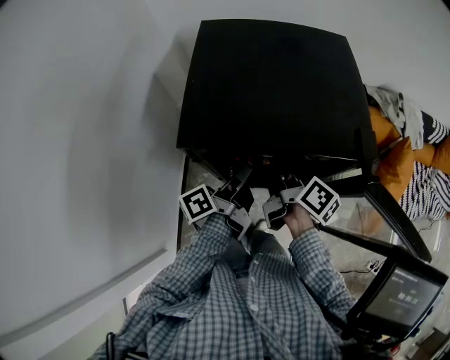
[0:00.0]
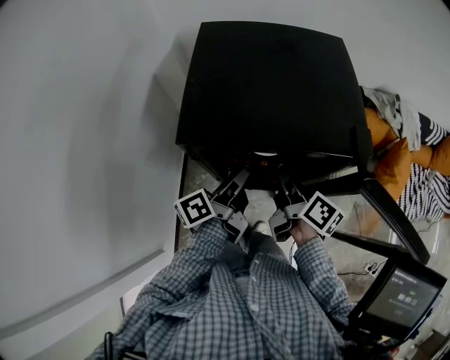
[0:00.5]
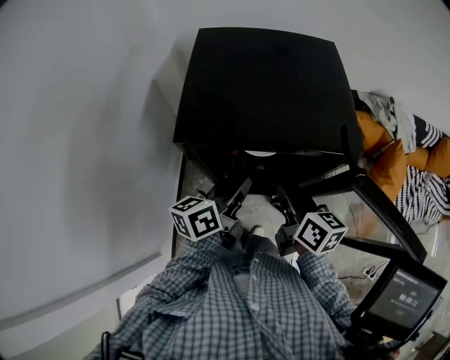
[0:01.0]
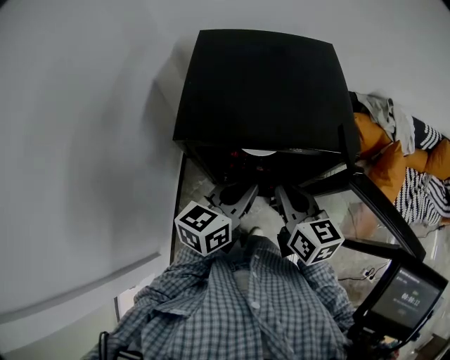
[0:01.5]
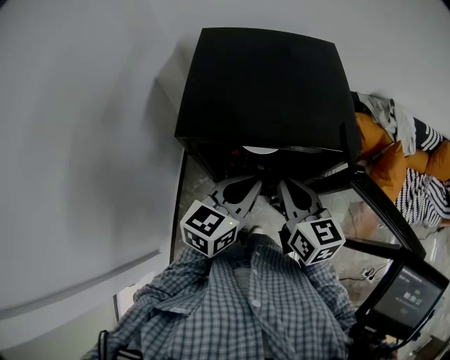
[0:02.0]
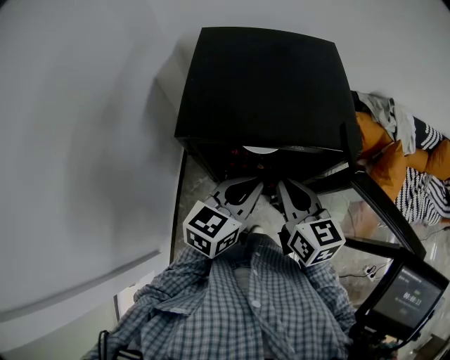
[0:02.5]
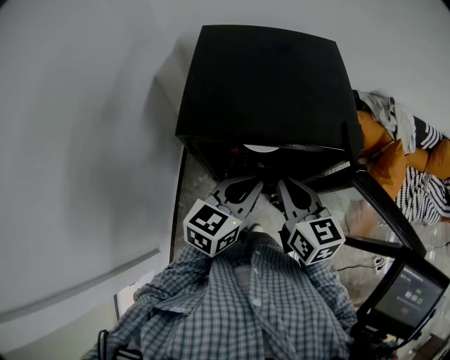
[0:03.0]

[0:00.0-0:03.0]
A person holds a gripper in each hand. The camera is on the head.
0:00.0 to 0:01.5: The right gripper shifts by about 10 cm, and twists roughly 50 degrees counterclockwise, seen from behind.

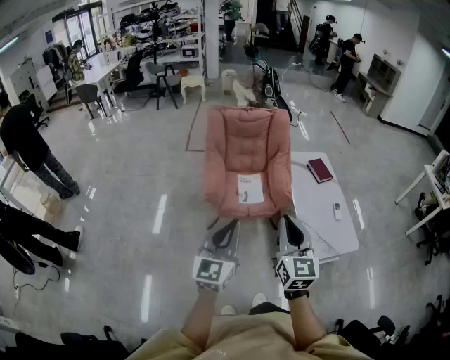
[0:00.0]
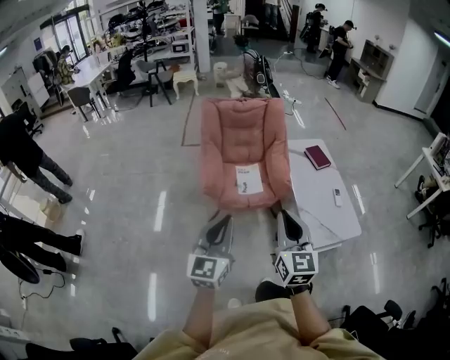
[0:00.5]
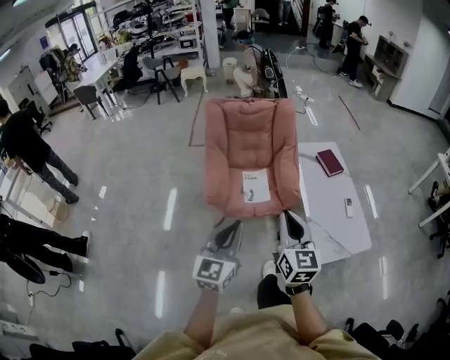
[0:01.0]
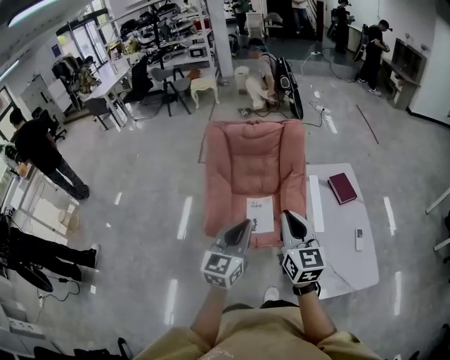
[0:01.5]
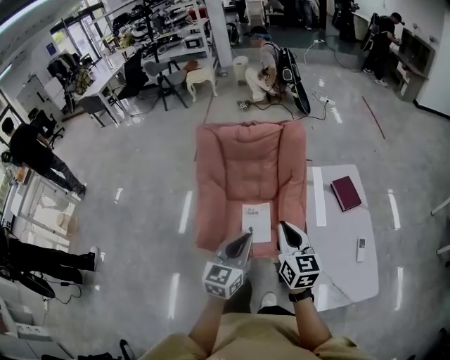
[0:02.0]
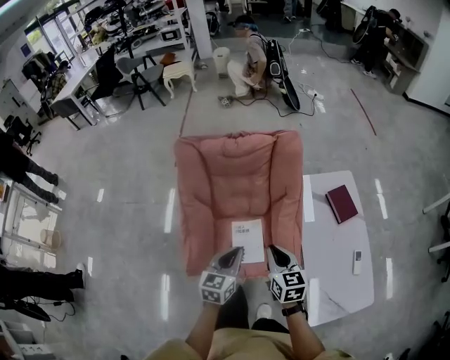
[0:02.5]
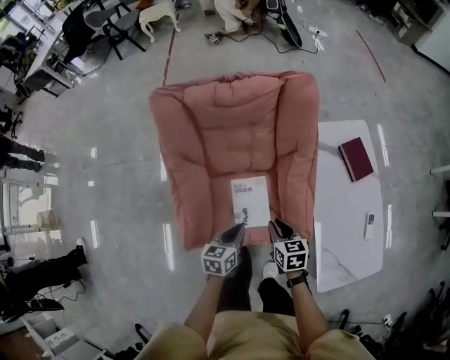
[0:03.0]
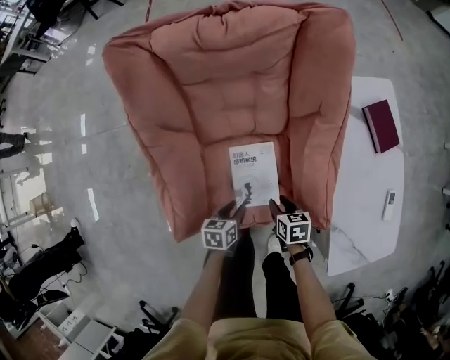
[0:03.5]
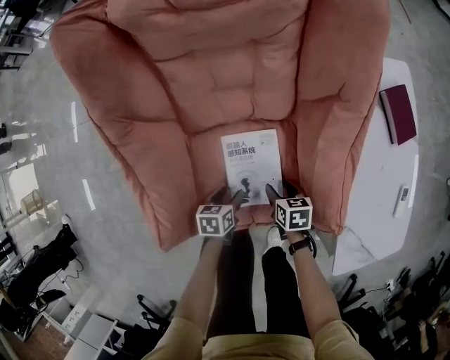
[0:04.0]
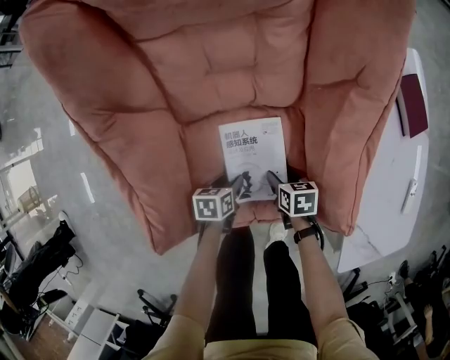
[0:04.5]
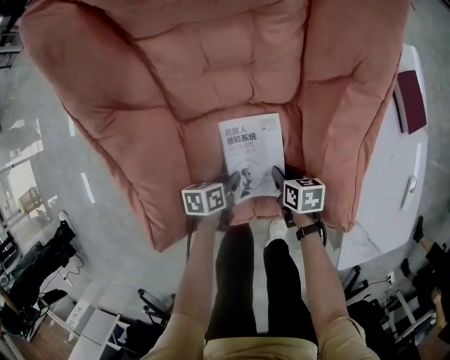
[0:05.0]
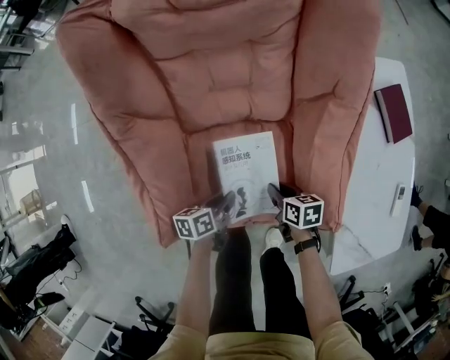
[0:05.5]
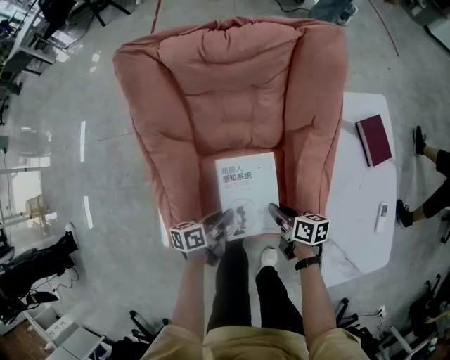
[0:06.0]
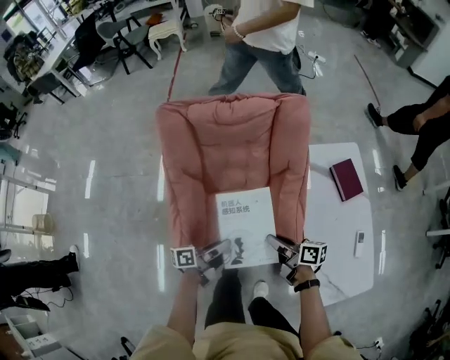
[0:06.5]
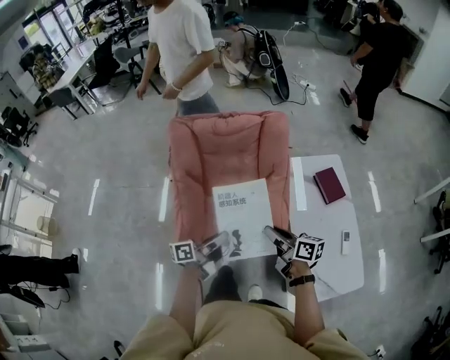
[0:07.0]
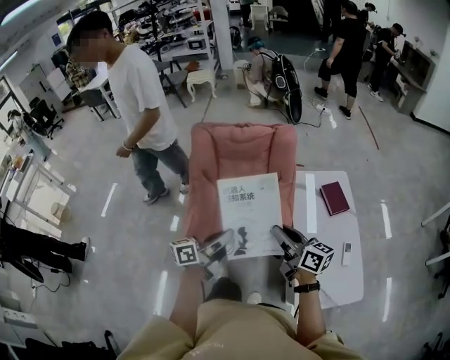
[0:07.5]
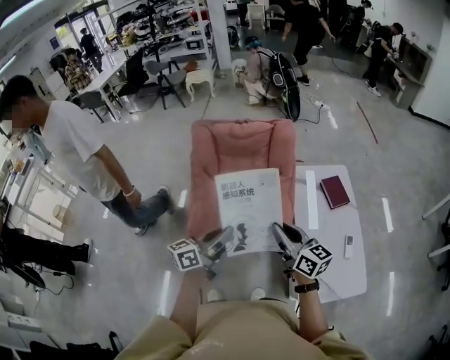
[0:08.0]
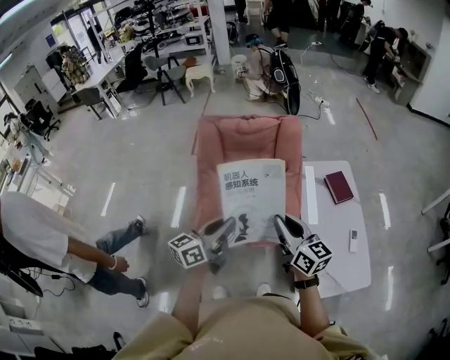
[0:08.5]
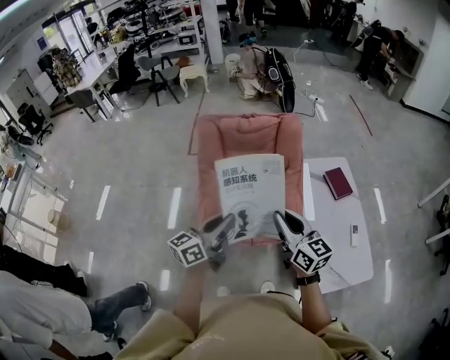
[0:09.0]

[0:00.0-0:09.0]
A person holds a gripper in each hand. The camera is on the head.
0:00.0 to 0:02.0: The pair of grippers is taken forward, about 40 cm. The right gripper rotates about 20 degrees.
0:02.0 to 0:04.5: Both grippers travel together downward, roughly 70 cm. The left gripper angles its fingers downward, by some 40 degrees, and opens up. Meanwhile the right gripper tips its fingers downward by about 50 degrees, and opens.
0:04.5 to 0:07.0: The grippers both shift upward by roughly 60 cm. The right gripper tips its fingers upward by some 50 degrees, and closes its fingers. The left gripper points its fingers approximately 50 degrees further upward, and closes up.
0:07.0 to 0:09.0: Both grippers move backward and upward, some 15 cm. The left gripper rotates roughly 40 degrees. The right gripper swivels about 40 degrees.

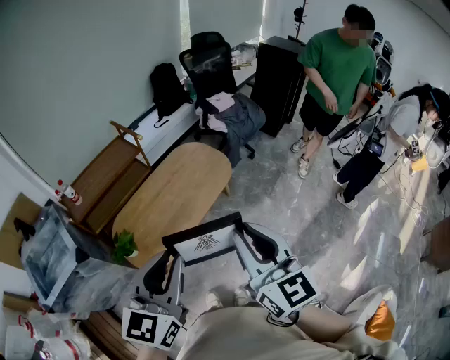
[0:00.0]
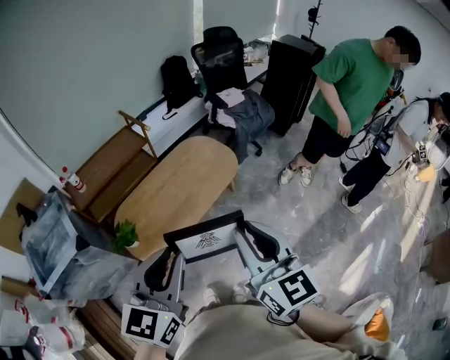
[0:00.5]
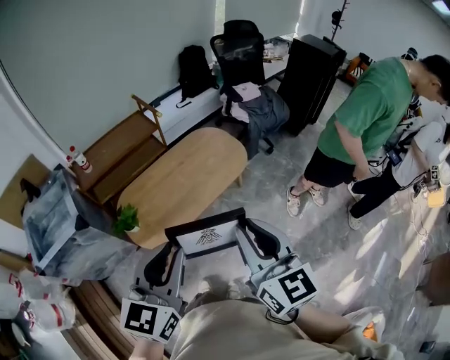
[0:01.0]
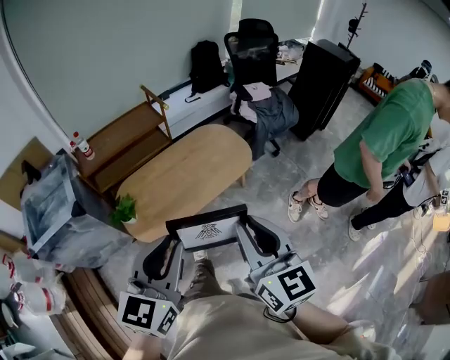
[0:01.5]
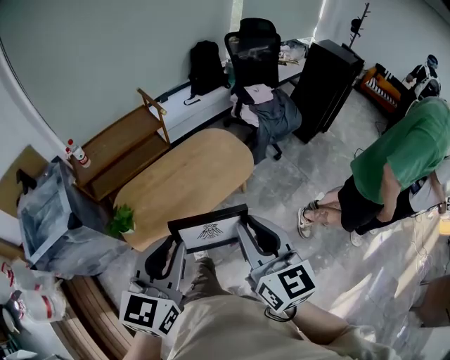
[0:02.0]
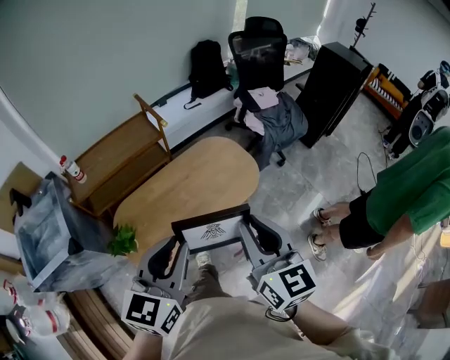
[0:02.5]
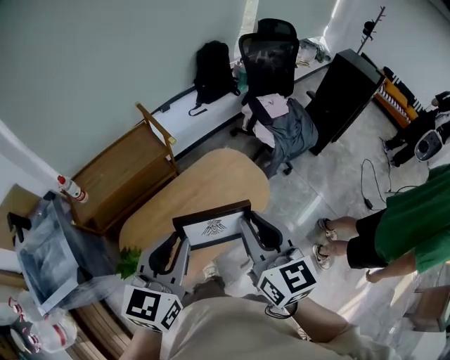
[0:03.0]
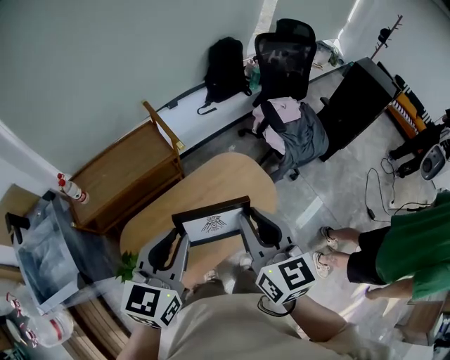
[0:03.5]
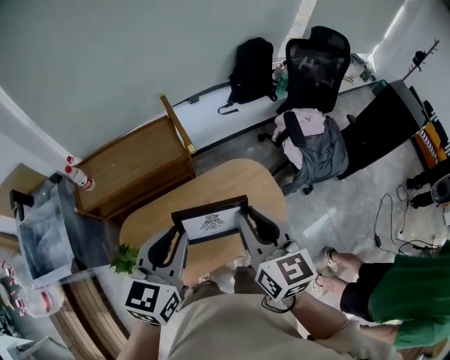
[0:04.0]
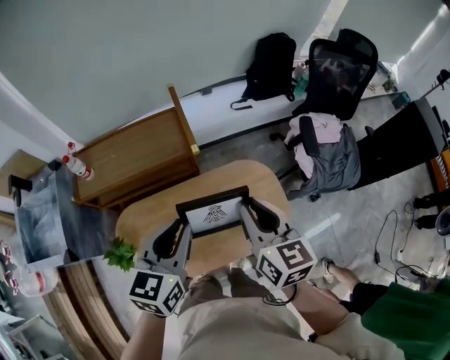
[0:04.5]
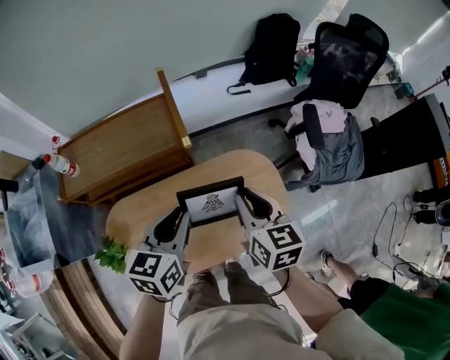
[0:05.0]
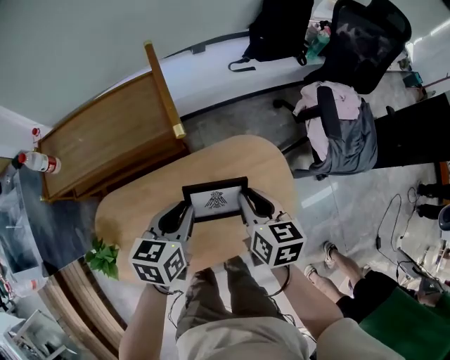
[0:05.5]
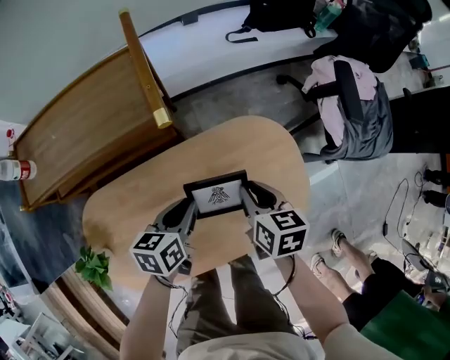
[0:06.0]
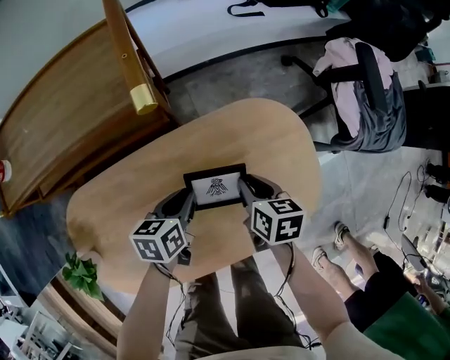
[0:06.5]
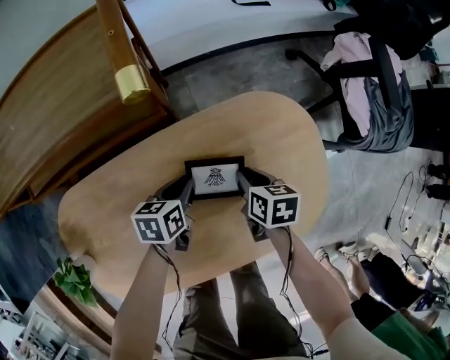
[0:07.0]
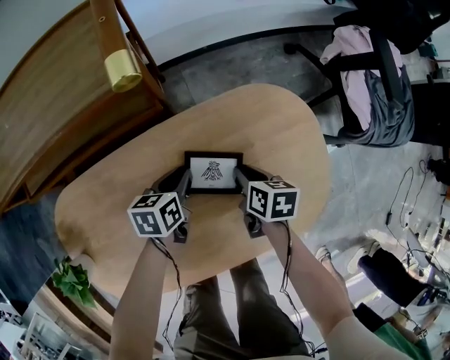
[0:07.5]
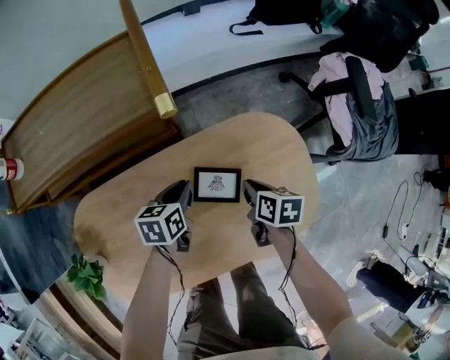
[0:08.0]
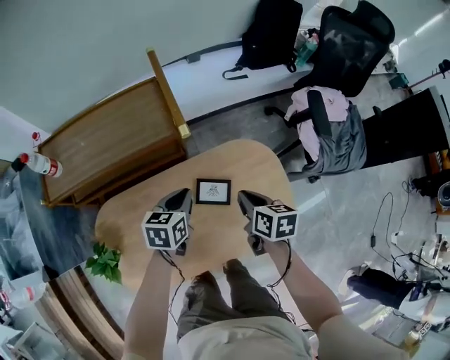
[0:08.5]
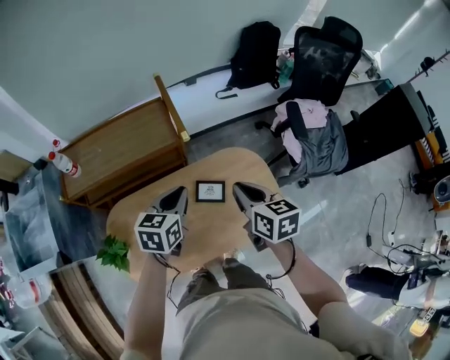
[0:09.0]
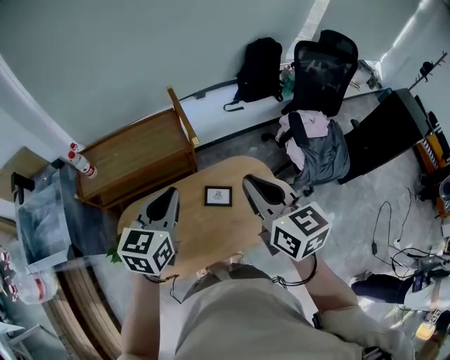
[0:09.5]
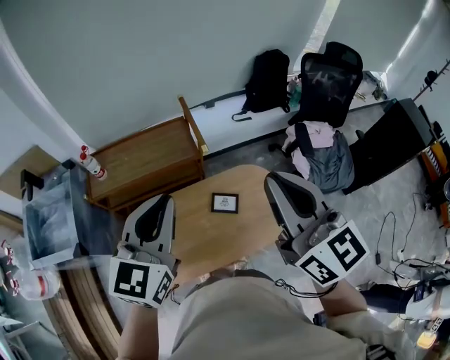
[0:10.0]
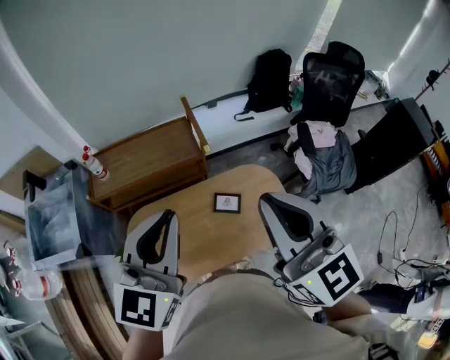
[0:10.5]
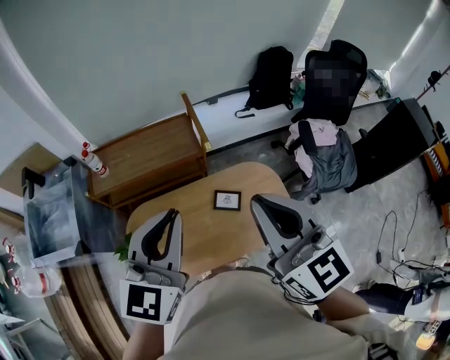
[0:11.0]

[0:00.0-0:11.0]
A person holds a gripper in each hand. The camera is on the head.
0:00.0 to 0:02.0: The two grippers go some 10 cm forward and downward.
0:02.0 to 0:03.5: The two grippers go about 35 cm forward.
0:03.5 to 0:05.5: The grippers both shift downward and forward by roughly 40 cm. The left gripper turns by roughly 30 degrees. Meanwhile the right gripper turns by roughly 30 degrees.
0:05.5 to 0:07.5: Both grippers move downward, approximately 40 cm. The right gripper swivels approximately 30 degrees.
0:07.5 to 0:09.0: Both grippers travel together upward, some 50 cm. The right gripper rotates approximately 30 degrees. Meanwhile the left gripper rotates about 30 degrees.
0:09.0 to 0:11.0: The left gripper travels upward and backward by approximately 30 cm, and swivels about 30 degrees. The right gripper goes approximately 30 cm upward, and changes its angle by about 40 degrees.

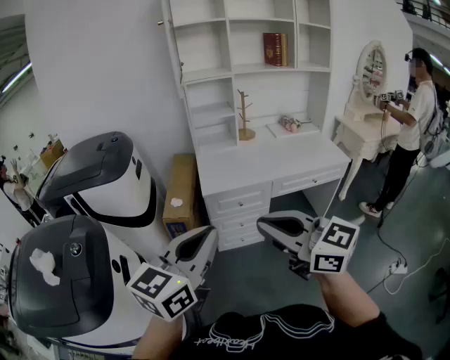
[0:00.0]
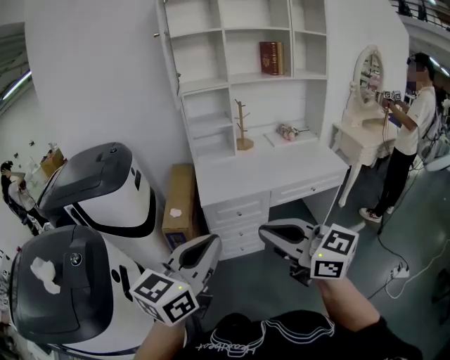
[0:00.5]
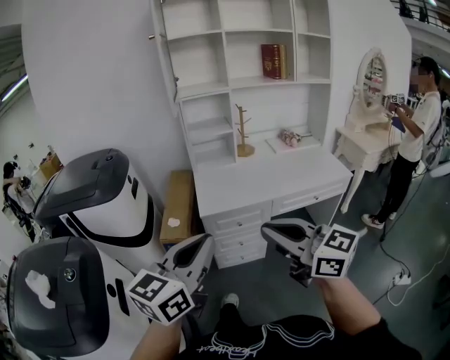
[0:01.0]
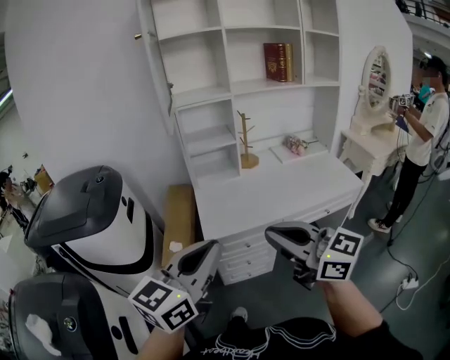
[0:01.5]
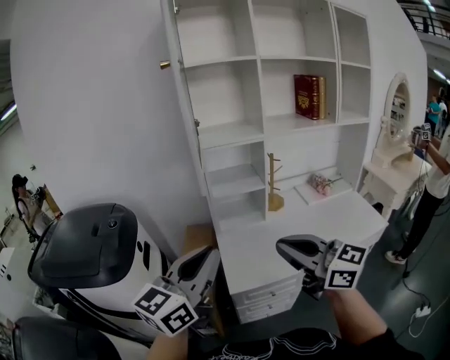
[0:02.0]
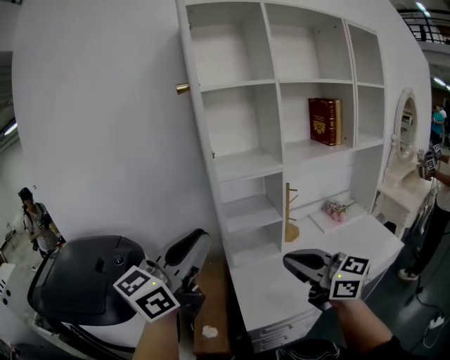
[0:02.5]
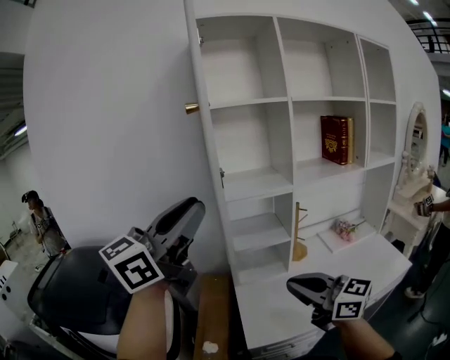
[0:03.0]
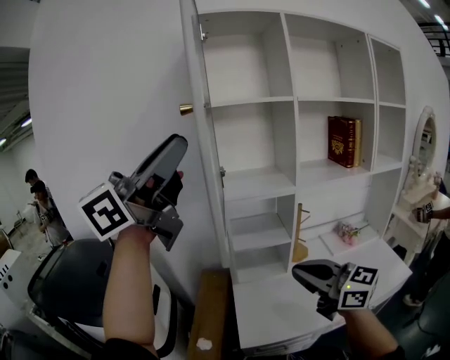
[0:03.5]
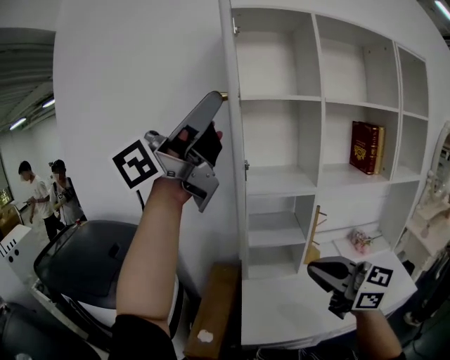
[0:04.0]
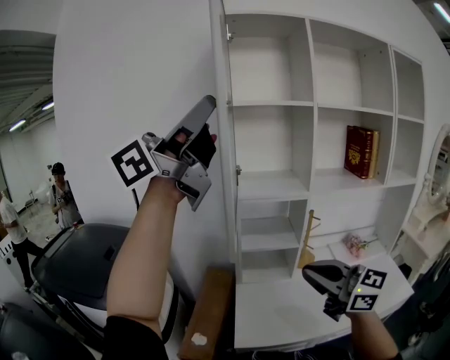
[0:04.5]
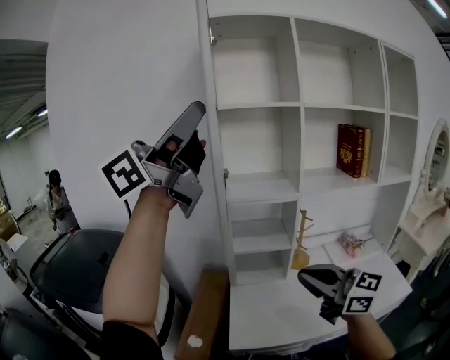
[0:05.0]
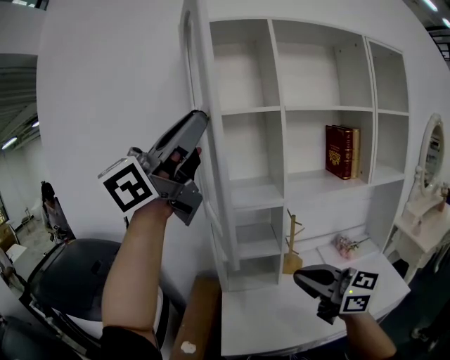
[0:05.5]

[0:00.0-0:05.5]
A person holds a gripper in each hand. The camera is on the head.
0:00.0 to 0:02.0: The grippers both shift forward by some 35 cm.
0:02.0 to 0:03.5: The right gripper heads forward, covering approximately 15 cm. Meanwhile the left gripper moves upward and forward, roughly 35 cm, turns by some 30 degrees, and opens.
0:03.5 to 0:05.5: The left gripper heads to the right and upward, covering some 10 cm; the right gripper travels to the right by approximately 5 cm.
